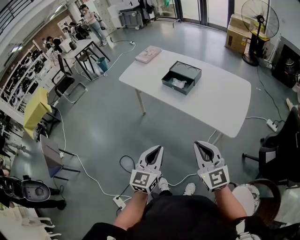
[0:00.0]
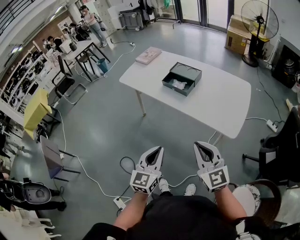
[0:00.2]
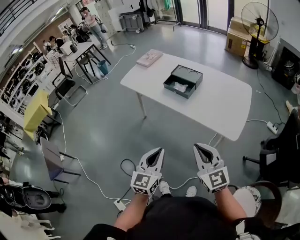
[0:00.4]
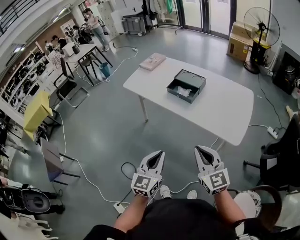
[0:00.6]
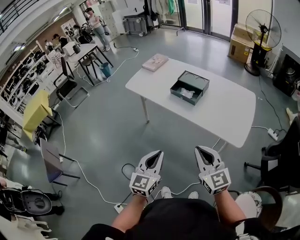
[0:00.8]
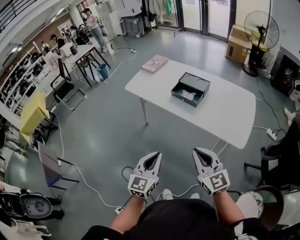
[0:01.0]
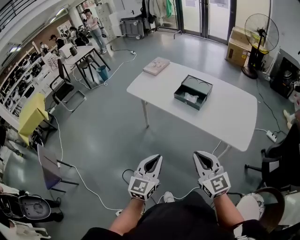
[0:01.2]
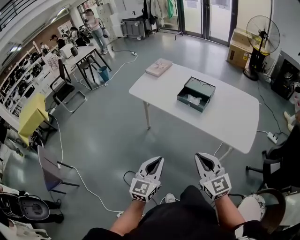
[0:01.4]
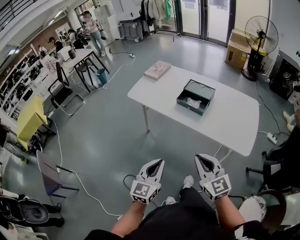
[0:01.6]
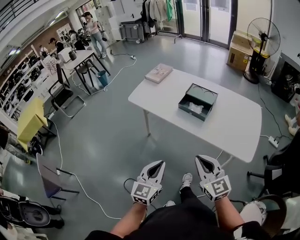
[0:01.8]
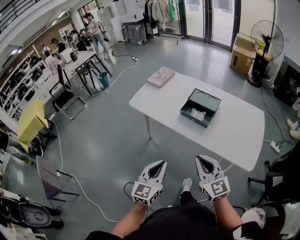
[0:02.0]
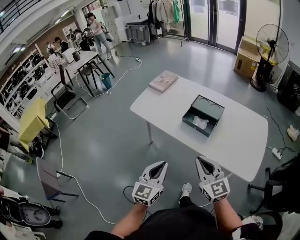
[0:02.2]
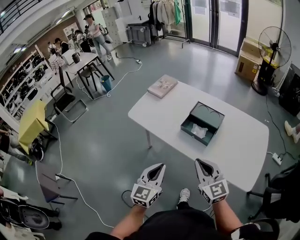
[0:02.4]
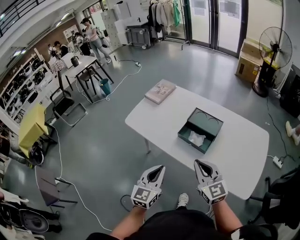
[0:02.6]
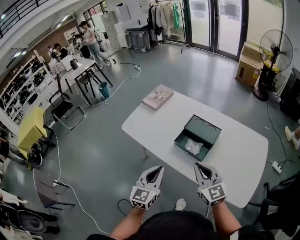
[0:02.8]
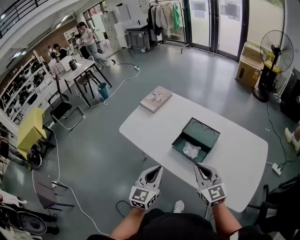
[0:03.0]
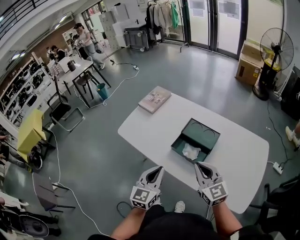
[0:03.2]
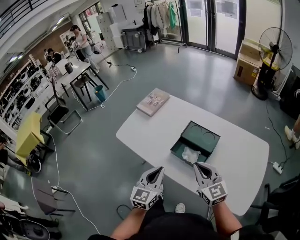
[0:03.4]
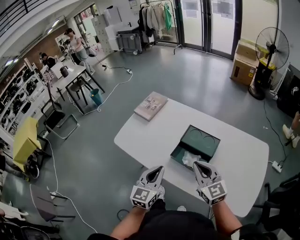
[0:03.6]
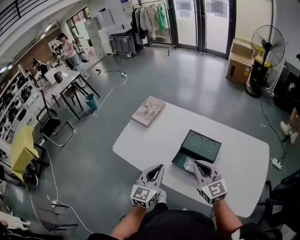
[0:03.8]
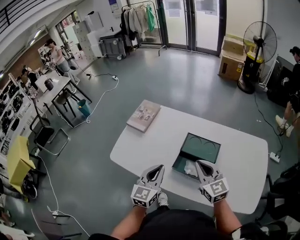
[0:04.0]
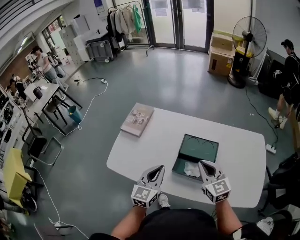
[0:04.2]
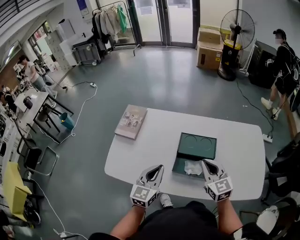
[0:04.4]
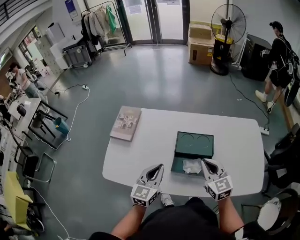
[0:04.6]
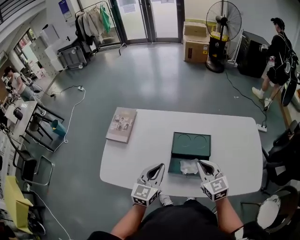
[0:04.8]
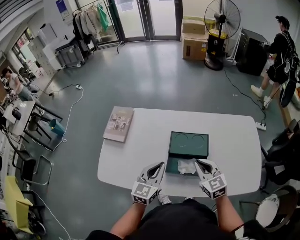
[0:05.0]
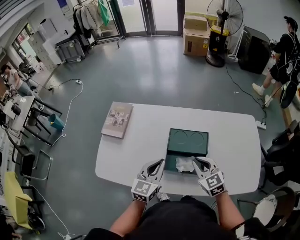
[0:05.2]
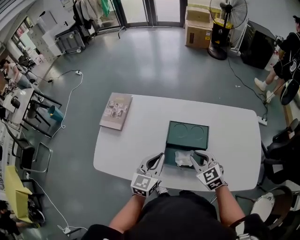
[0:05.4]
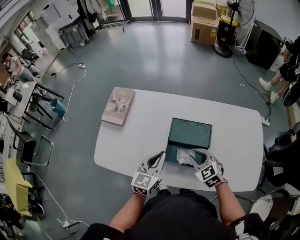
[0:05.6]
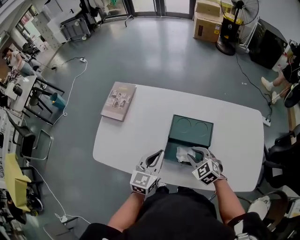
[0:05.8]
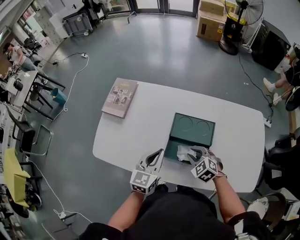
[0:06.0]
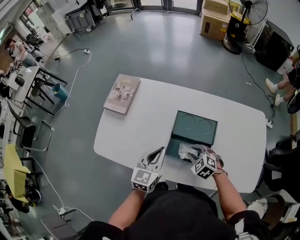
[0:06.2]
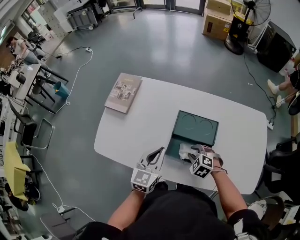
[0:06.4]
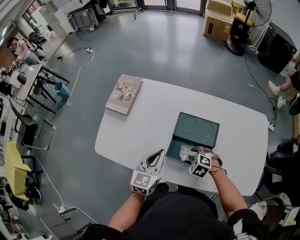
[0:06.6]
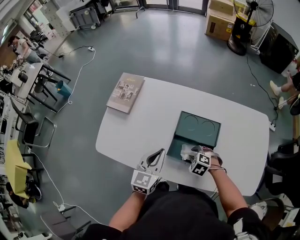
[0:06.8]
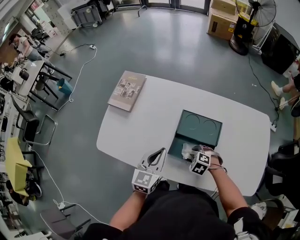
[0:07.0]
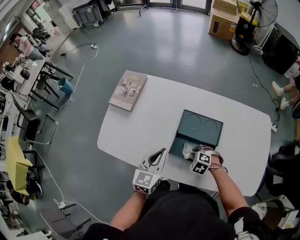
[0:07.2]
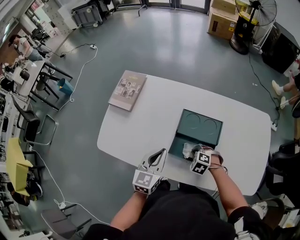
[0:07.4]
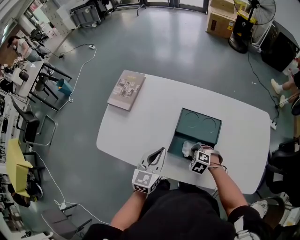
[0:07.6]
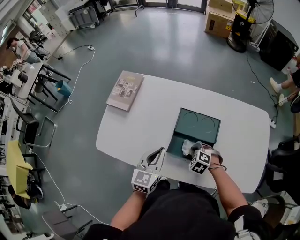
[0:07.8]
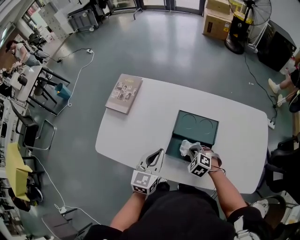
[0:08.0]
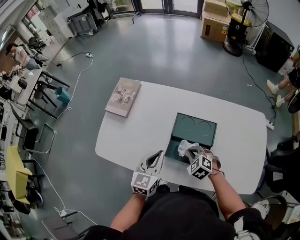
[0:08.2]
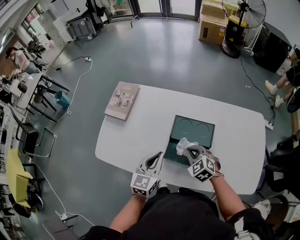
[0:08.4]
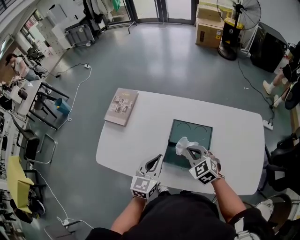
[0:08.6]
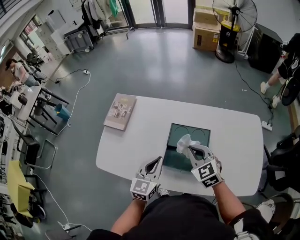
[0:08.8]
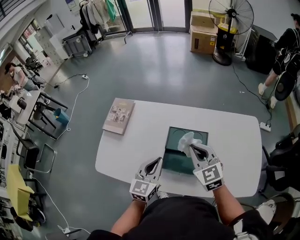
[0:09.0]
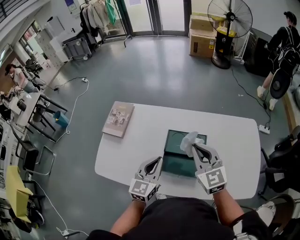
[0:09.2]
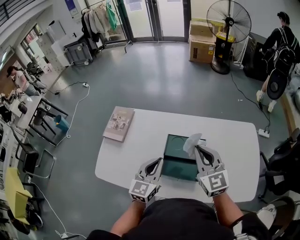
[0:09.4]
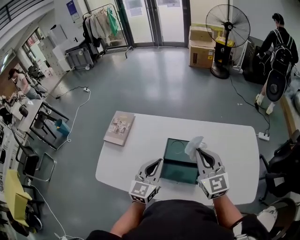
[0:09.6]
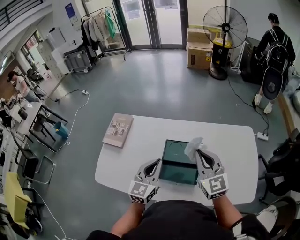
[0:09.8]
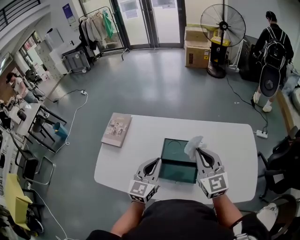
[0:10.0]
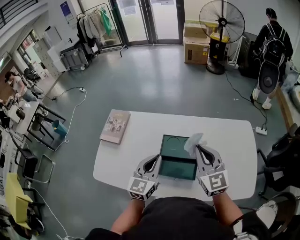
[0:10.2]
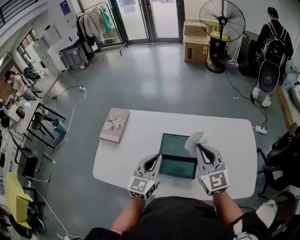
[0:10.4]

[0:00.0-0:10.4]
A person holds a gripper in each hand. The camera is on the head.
0:00.0 to 0:01.4: Both grippers move to the left and forward, about 15 cm.
0:01.4 to 0:03.0: The two grippers go roughly 35 cm forward.
0:03.0 to 0:04.4: The left gripper moves roughly 25 cm, and swivels about 30 degrees. Meanwhile the right gripper changes place by about 15 cm, and turns by about 30 degrees.
0:04.4 to 0:06.0: The left gripper shifts about 10 cm downward and to the right, while the right gripper travels downward by roughly 15 cm, tilts its fingers about 40 degrees downward, and opens its fingers.
0:06.0 to 0:07.4: The right gripper moves downward, about 10 cm, swivels approximately 20 degrees, and closes up.
0:07.4 to 0:09.0: The left gripper shifts by some 5 cm. Meanwhile the right gripper shifts about 25 cm upward, and angles its fingers upward, by roughly 50 degrees.
0:09.0 to 0:10.4: The left gripper changes place by some 5 cm, while the right gripper moves upward and to the right, some 10 cm.

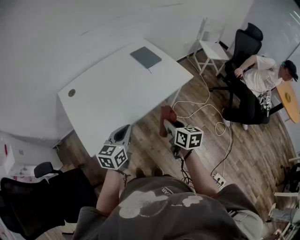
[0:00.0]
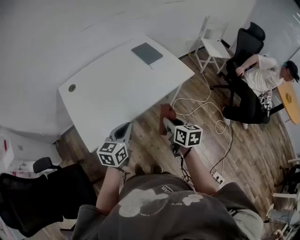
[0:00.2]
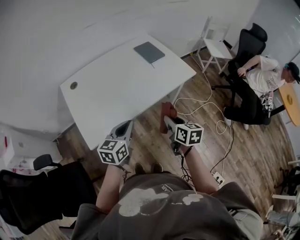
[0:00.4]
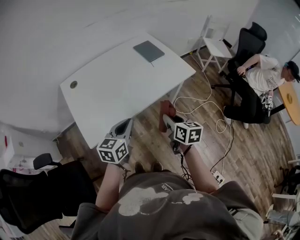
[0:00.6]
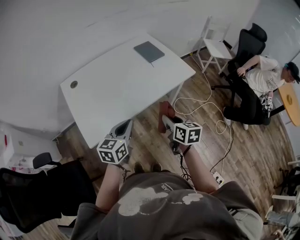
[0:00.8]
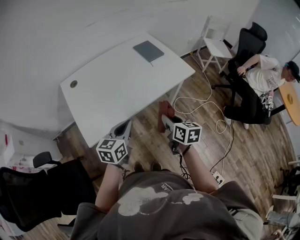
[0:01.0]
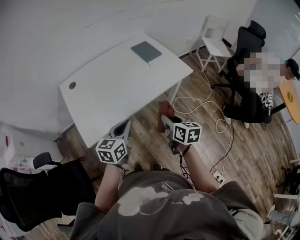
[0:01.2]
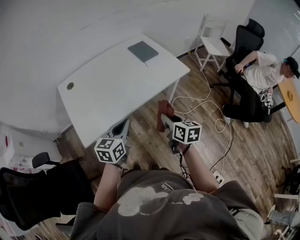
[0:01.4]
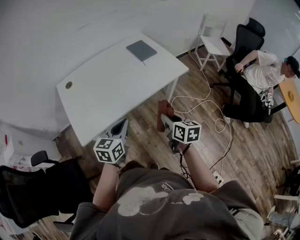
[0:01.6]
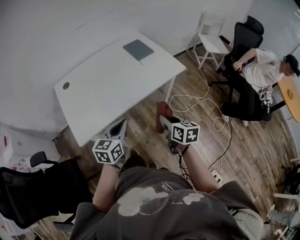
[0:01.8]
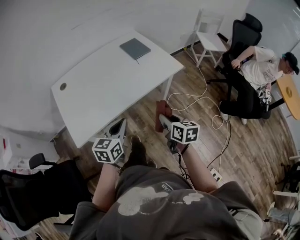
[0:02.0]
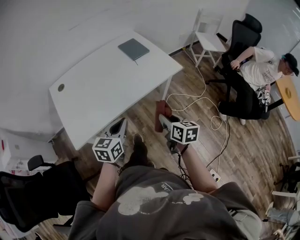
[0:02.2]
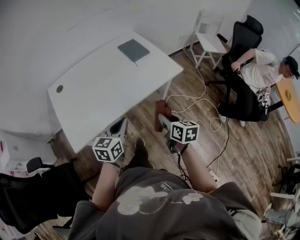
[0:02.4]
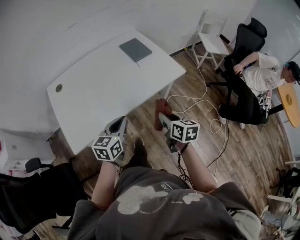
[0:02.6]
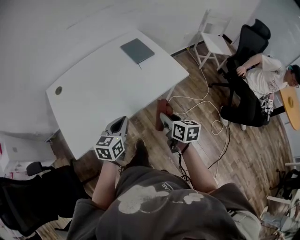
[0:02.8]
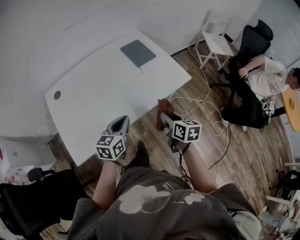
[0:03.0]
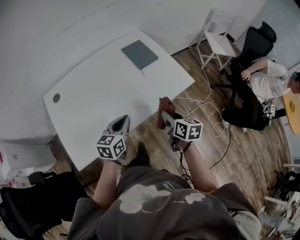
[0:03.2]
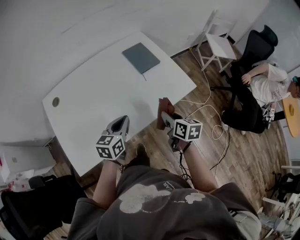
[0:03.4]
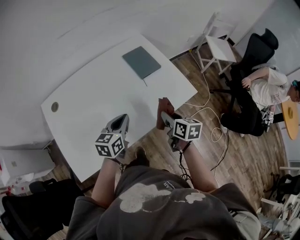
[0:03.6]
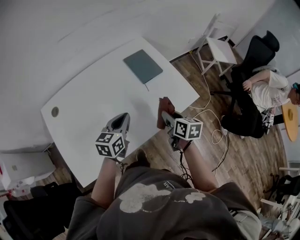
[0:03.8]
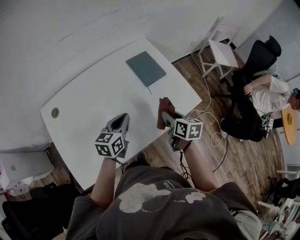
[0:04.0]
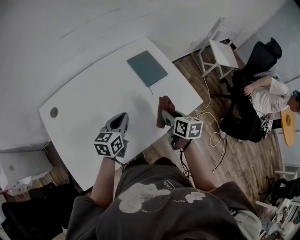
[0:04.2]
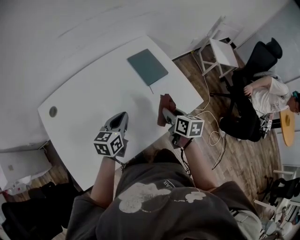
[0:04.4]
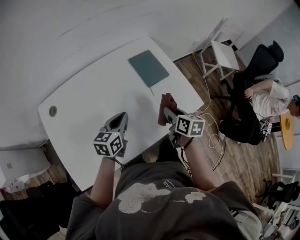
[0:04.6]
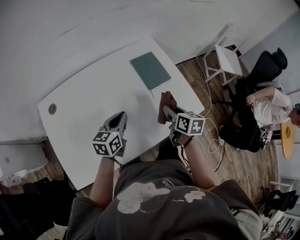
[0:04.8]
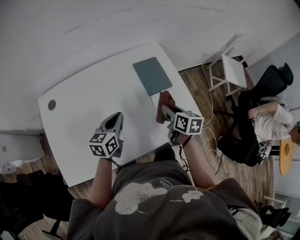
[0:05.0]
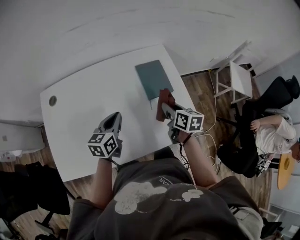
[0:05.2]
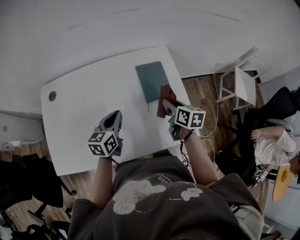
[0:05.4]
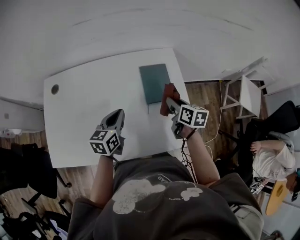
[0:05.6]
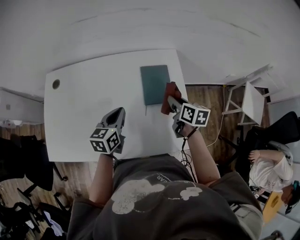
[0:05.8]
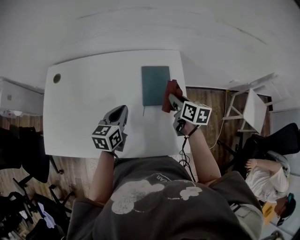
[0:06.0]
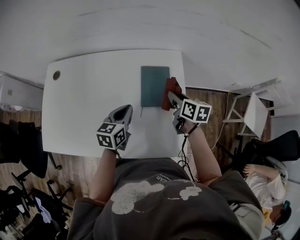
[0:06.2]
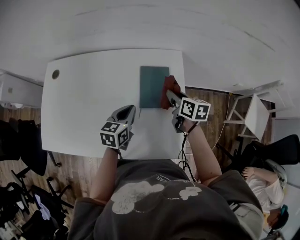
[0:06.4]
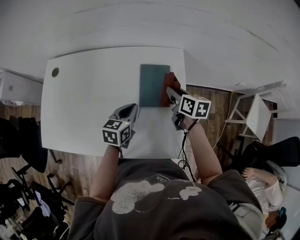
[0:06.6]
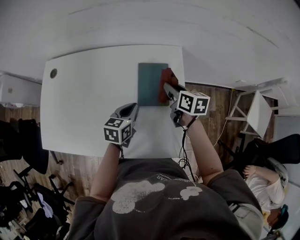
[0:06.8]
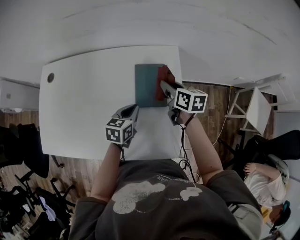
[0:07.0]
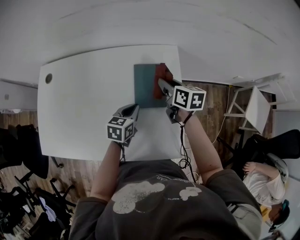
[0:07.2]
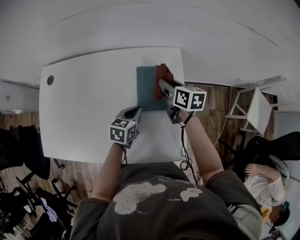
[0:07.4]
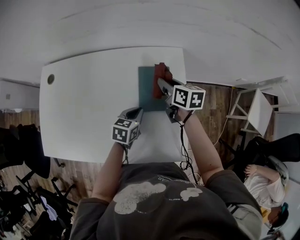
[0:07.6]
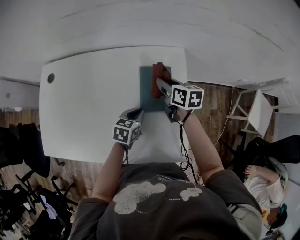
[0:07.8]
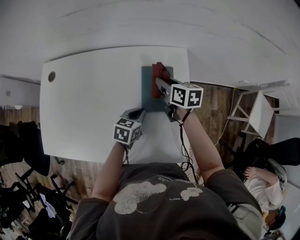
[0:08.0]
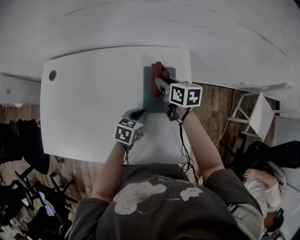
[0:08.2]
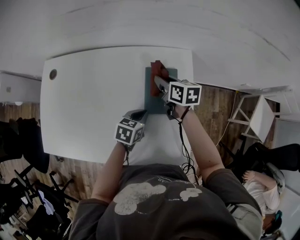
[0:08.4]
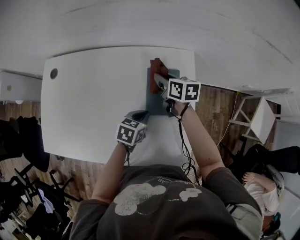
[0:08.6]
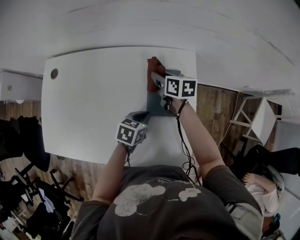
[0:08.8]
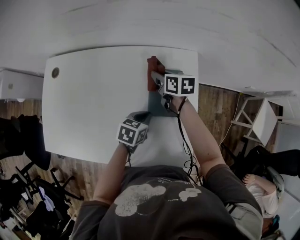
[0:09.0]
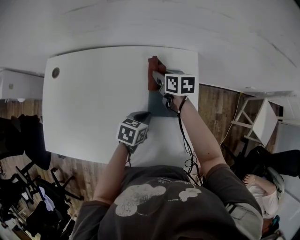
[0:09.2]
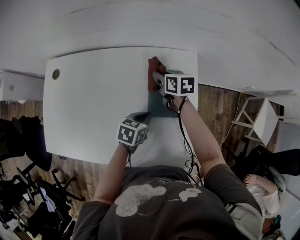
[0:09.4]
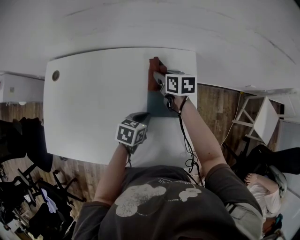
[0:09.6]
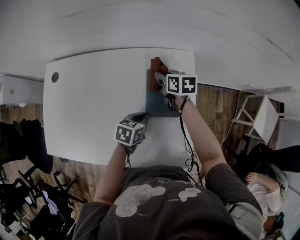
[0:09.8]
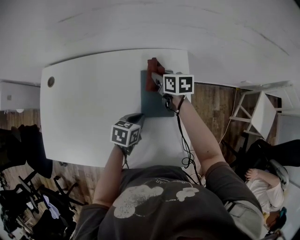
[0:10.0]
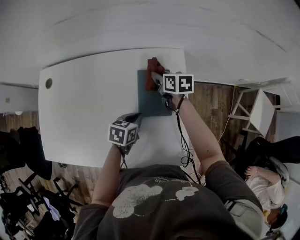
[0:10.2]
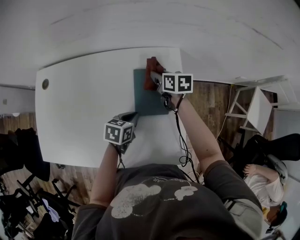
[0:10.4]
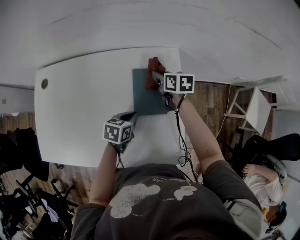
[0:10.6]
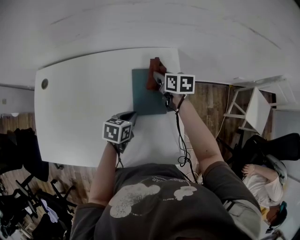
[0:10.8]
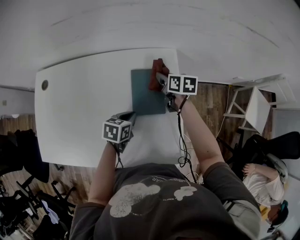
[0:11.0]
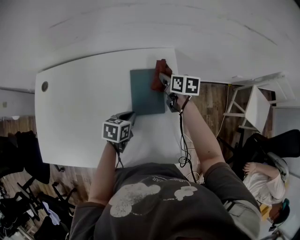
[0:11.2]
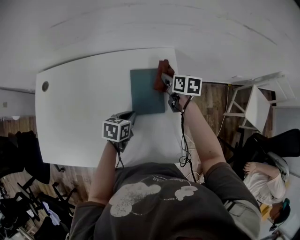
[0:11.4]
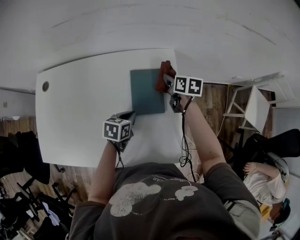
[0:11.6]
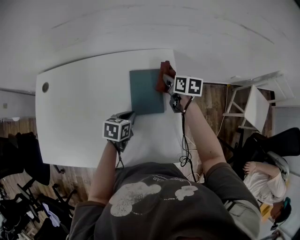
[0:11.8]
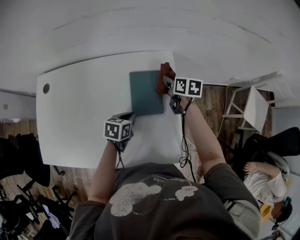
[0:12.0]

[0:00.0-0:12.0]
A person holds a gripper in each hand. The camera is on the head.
0:00.0 to 0:01.6: The right gripper changes place by roughly 5 cm. The left gripper travels to the right by approximately 5 cm.
0:01.6 to 0:03.0: Both grippers travel together forward, approximately 15 cm.
0:03.0 to 0:04.4: Both grippers travel together forward, some 20 cm.
0:04.4 to 0:06.0: The left gripper moves about 15 cm, and changes its angle by some 30 degrees; the right gripper shifts by some 25 cm, and turns by approximately 30 degrees.
0:06.0 to 0:07.6: The left gripper is displaced downward and to the right by about 15 cm. The right gripper shifts roughly 10 cm forward.
0:07.6 to 0:09.0: The right gripper shifts some 10 cm to the left and forward.
0:09.0 to 0:10.4: The right gripper goes approximately 5 cm to the right.
0:10.4 to 0:12.0: The right gripper travels to the right by some 10 cm.

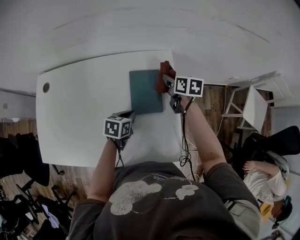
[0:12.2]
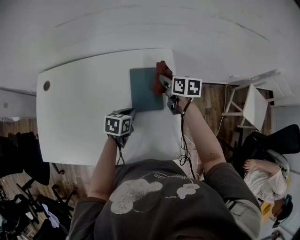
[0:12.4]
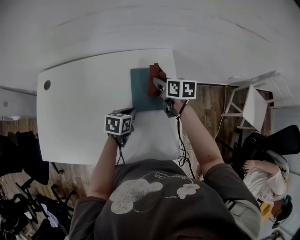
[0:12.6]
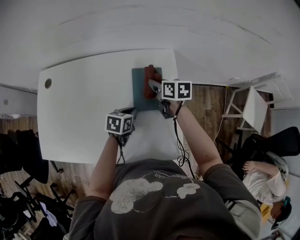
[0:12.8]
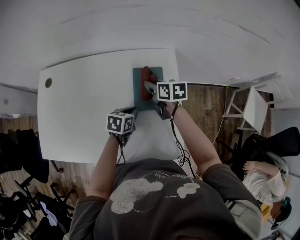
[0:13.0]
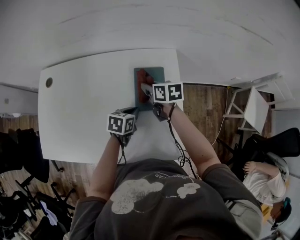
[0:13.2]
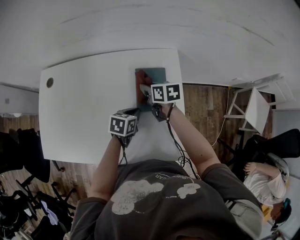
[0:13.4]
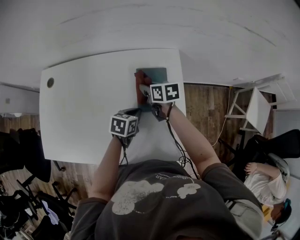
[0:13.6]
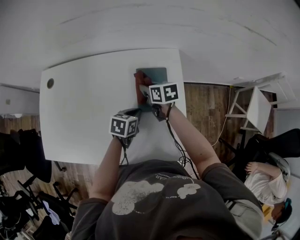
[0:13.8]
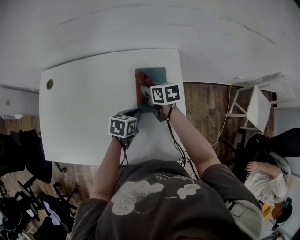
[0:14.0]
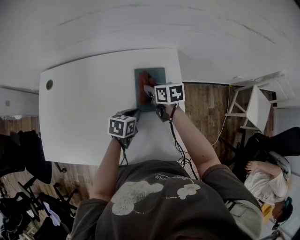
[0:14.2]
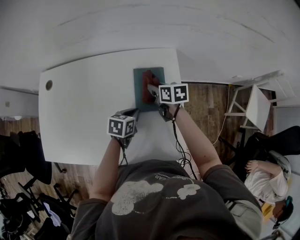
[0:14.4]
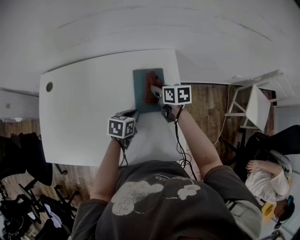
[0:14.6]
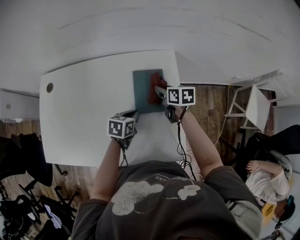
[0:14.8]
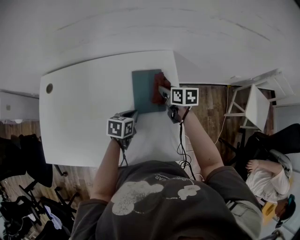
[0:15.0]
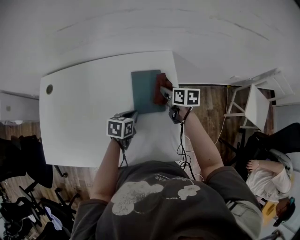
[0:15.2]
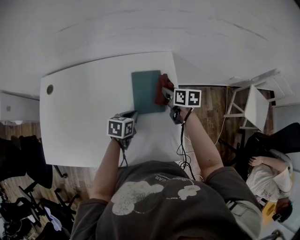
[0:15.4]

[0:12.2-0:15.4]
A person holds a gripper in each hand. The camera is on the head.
0:12.2 to 0:13.8: The right gripper moves to the left, about 15 cm.
0:13.8 to 0:15.4: The right gripper moves to the right, about 15 cm.
